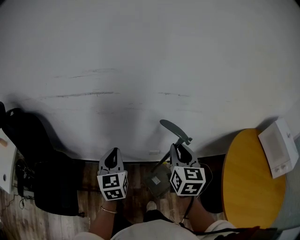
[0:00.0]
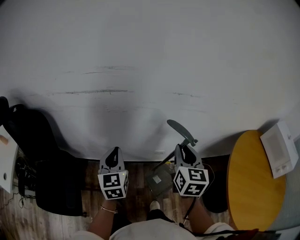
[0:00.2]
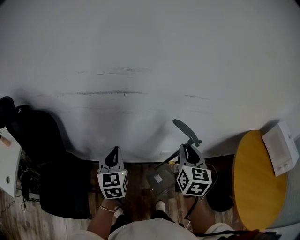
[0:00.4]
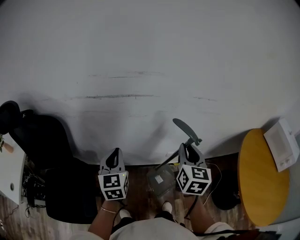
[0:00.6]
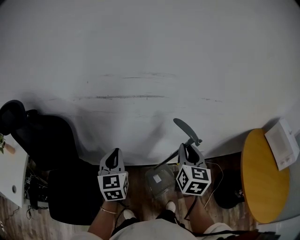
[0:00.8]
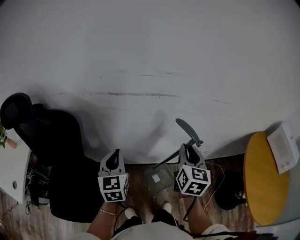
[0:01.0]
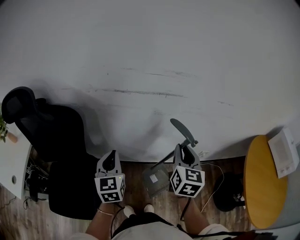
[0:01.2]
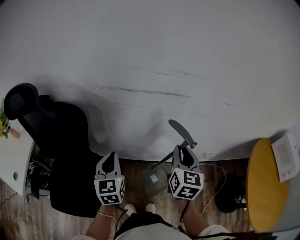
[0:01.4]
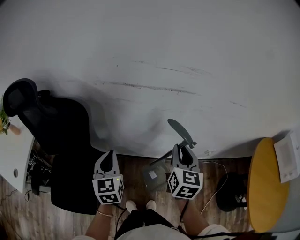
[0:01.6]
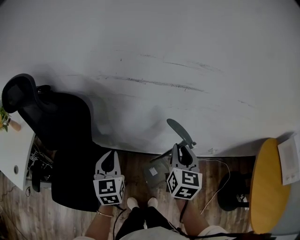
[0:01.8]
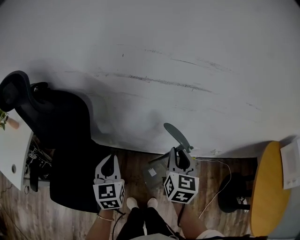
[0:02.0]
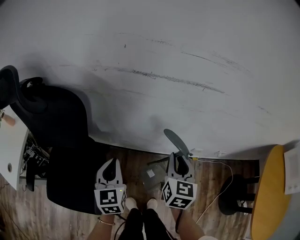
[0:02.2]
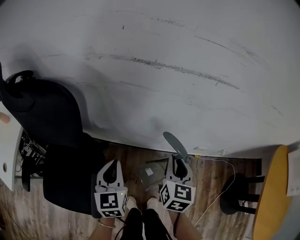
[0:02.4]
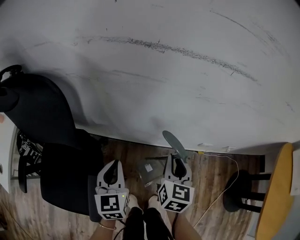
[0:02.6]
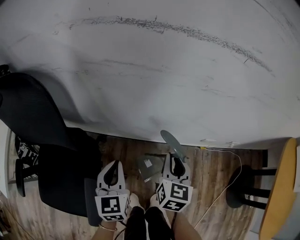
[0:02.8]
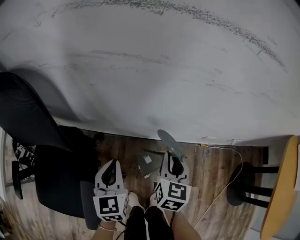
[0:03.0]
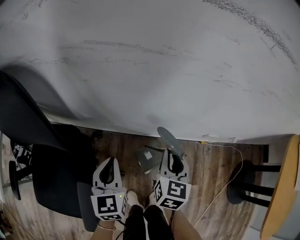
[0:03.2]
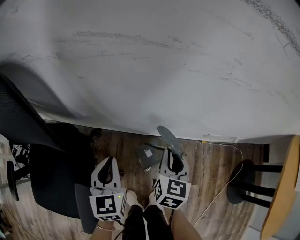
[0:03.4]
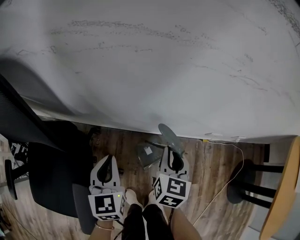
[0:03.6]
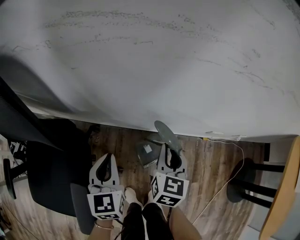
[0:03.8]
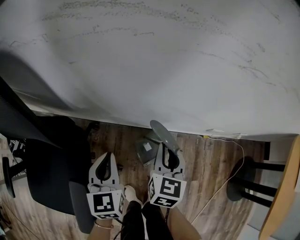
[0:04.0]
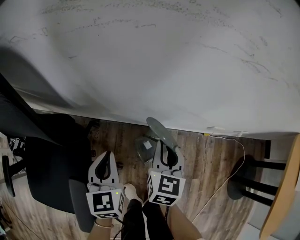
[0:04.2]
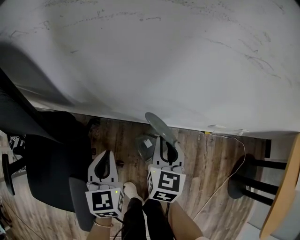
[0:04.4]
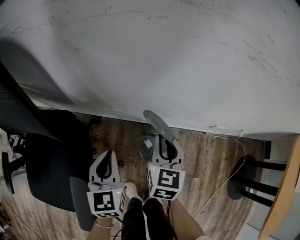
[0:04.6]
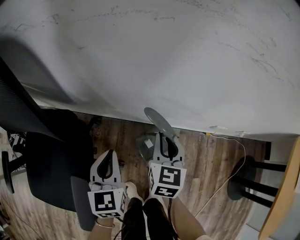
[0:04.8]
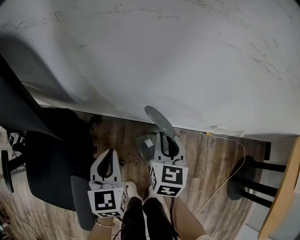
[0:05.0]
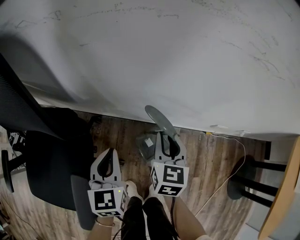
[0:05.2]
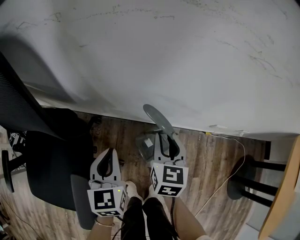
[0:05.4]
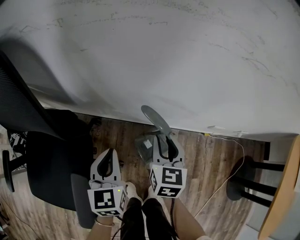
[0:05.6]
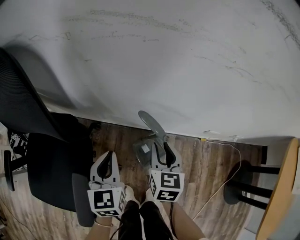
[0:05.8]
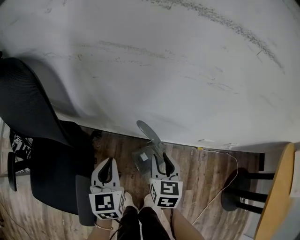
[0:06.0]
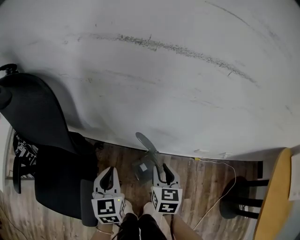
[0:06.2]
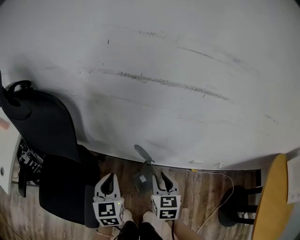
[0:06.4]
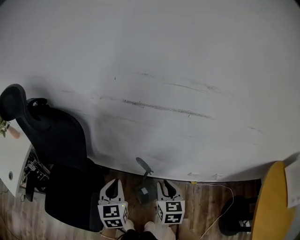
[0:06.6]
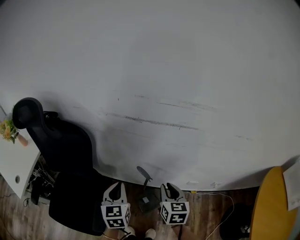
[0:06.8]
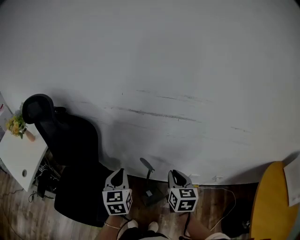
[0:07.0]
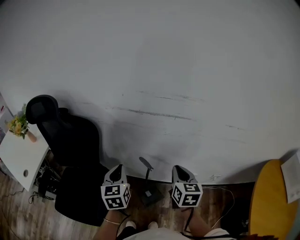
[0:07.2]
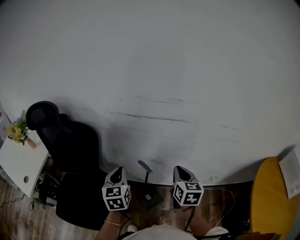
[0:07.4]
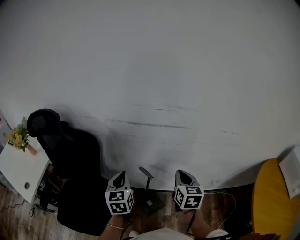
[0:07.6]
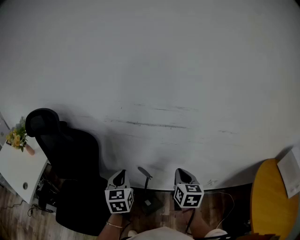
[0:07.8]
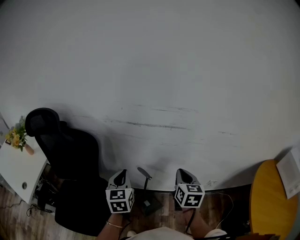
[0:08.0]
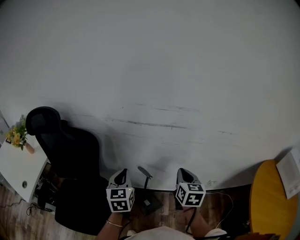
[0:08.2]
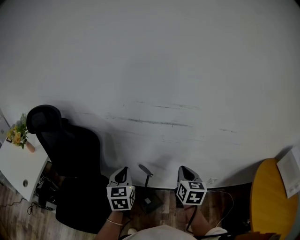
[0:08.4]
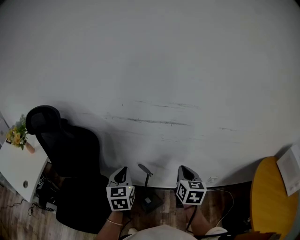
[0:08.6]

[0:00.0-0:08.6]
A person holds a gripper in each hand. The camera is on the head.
0:00.0 to 0:01.4: Both grippers move to the left, some 30 cm.
0:01.4 to 0:02.8: Both grippers travel together downward, some 25 cm.
0:02.8 to 0:04.4: Both grippers move downward, about 10 cm.
0:04.4 to 0:05.8: The grippers stay close to where they were, moving slightly.
0:05.8 to 0:07.2: Both grippers travel together upward, some 30 cm. The right gripper closes its fingers.
0:07.2 to 0:08.6: The grippers move only a little.

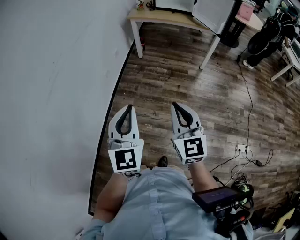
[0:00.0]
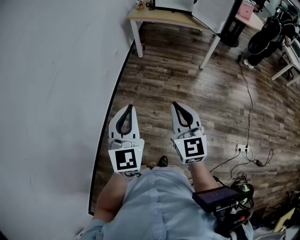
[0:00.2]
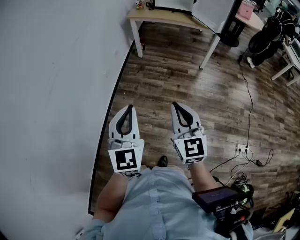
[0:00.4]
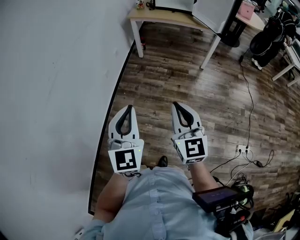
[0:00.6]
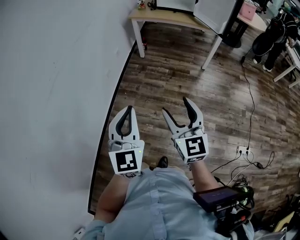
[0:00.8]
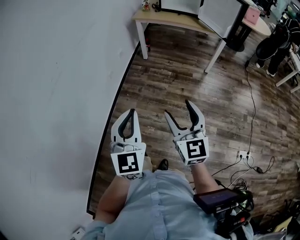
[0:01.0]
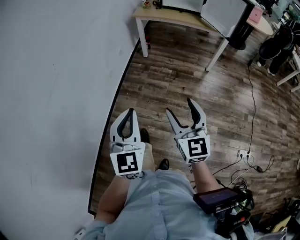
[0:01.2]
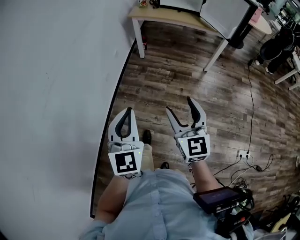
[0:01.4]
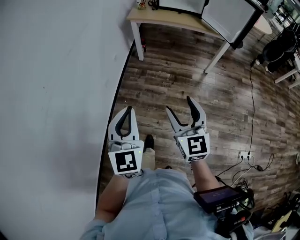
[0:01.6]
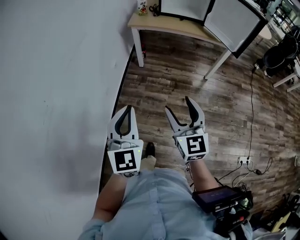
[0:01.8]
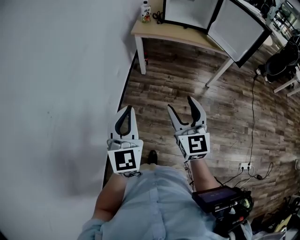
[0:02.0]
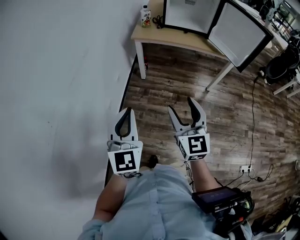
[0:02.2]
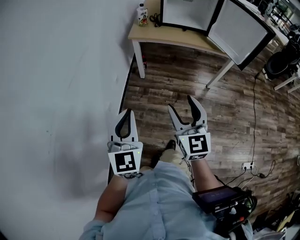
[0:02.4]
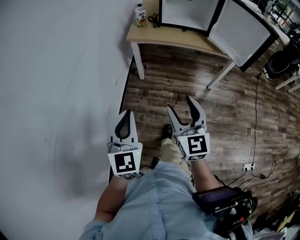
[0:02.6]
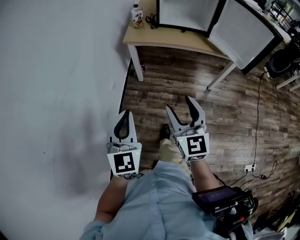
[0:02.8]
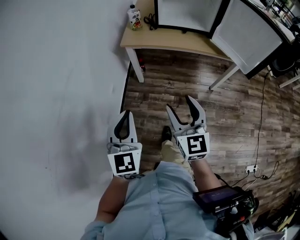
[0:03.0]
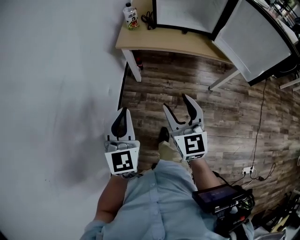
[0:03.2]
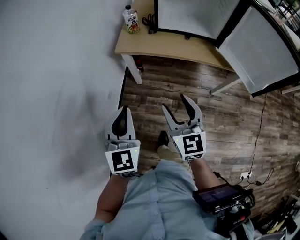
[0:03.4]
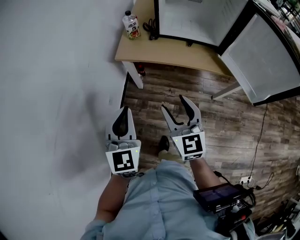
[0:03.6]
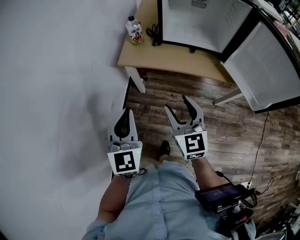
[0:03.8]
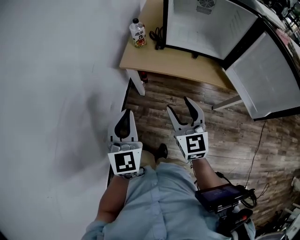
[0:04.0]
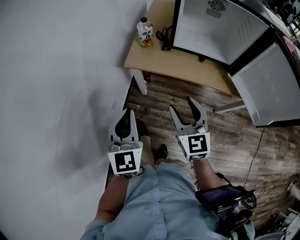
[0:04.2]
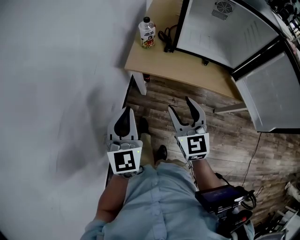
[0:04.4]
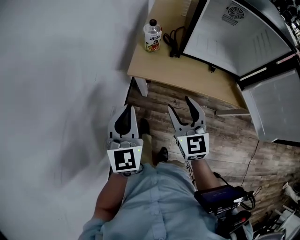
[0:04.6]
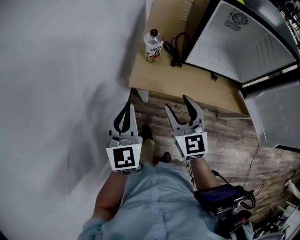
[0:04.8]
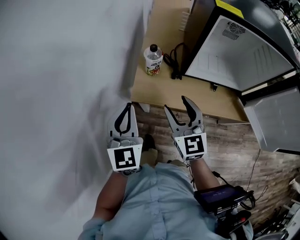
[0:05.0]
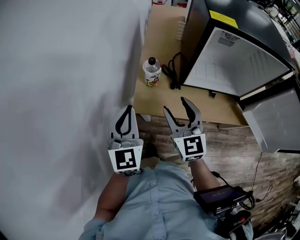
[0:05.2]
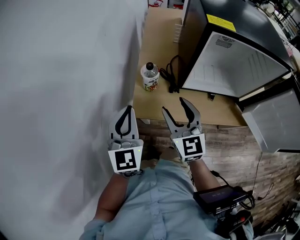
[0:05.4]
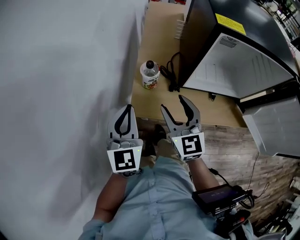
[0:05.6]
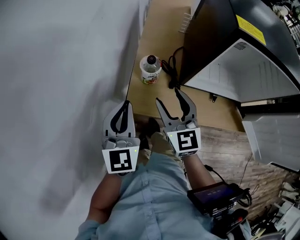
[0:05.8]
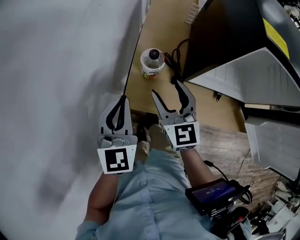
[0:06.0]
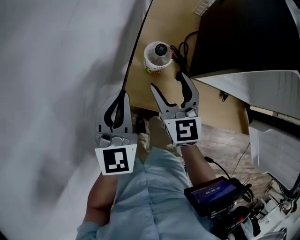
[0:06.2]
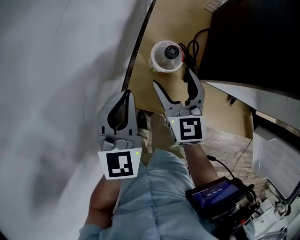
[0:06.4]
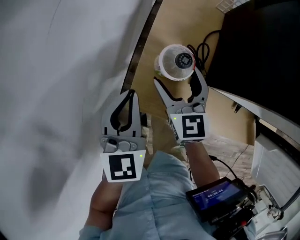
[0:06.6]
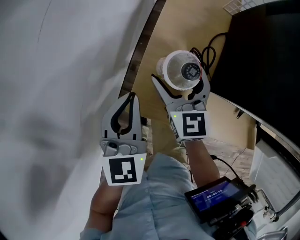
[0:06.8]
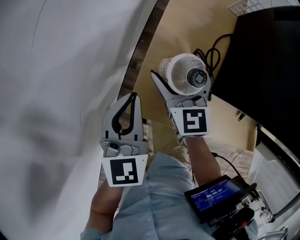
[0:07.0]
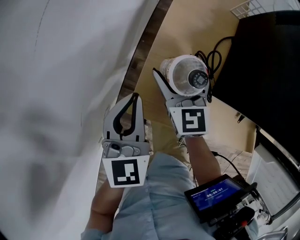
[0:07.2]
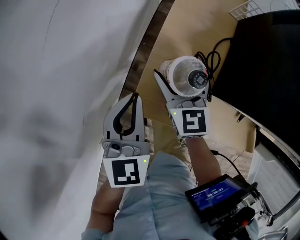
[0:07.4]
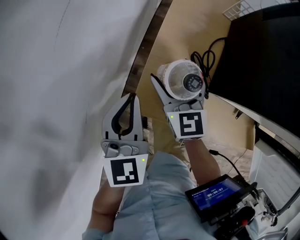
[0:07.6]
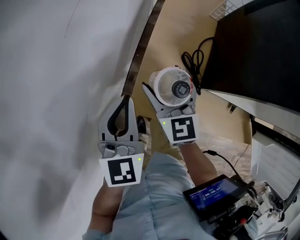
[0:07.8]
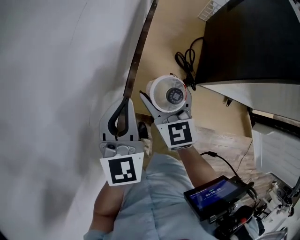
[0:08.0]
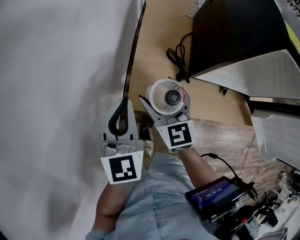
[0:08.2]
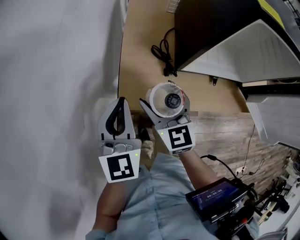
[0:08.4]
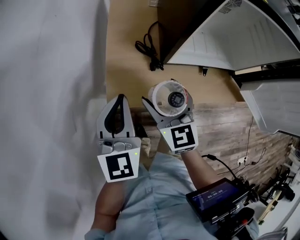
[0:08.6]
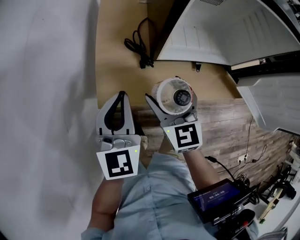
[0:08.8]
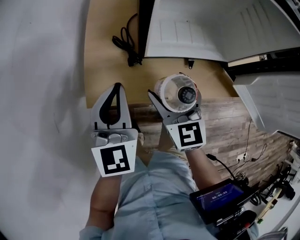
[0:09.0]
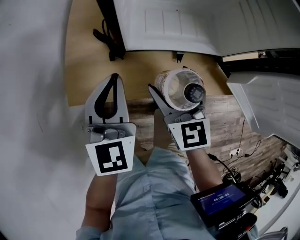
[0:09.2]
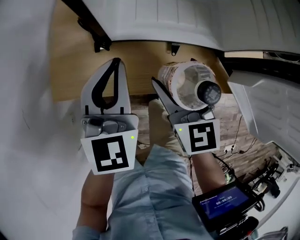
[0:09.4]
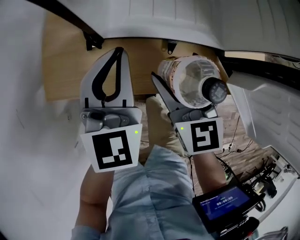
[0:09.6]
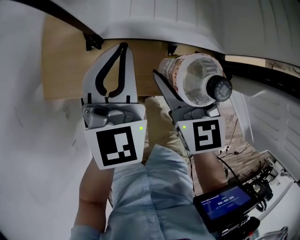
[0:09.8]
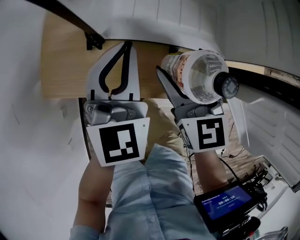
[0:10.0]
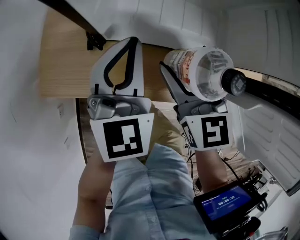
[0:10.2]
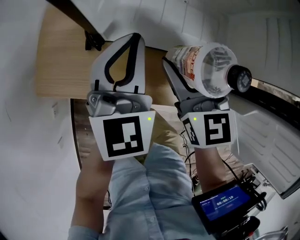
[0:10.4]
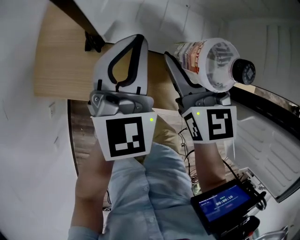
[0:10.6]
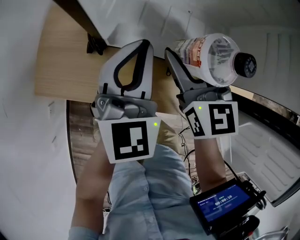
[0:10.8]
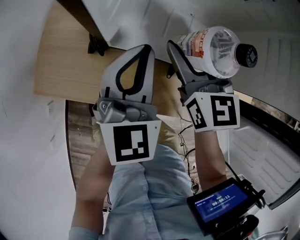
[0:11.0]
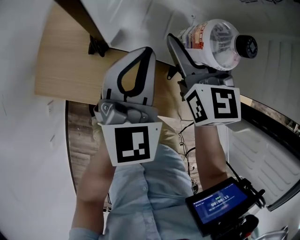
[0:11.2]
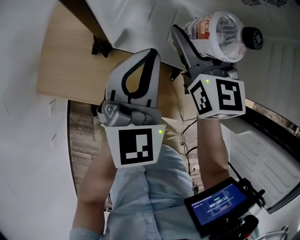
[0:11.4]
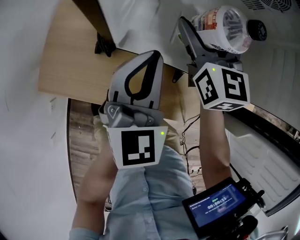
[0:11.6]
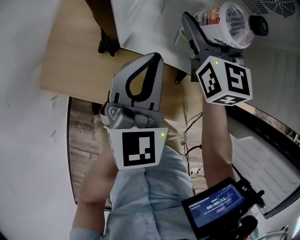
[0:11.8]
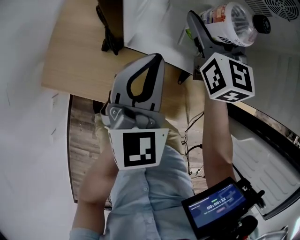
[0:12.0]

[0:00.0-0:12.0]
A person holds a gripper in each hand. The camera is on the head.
0:00.0 to 0:01.6: Both grippers move forward, approximately 20 cm. The right gripper opens up.
0:01.6 to 0:03.0: Both grippers move forward, roughly 35 cm.
0:03.0 to 0:04.4: Both grippers move forward, about 30 cm.
0:04.4 to 0:06.0: The grippers both shift forward by roughly 30 cm.
0:06.0 to 0:07.6: Both grippers travel together forward and downward, some 10 cm.
0:07.6 to 0:09.0: The two grippers go approximately 25 cm to the right and backward. The left gripper turns by approximately 20 degrees.
0:09.0 to 0:10.4: Both grippers travel together to the right and forward, roughly 15 cm.
0:10.4 to 0:12.0: The right gripper goes some 15 cm forward.

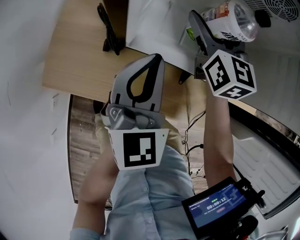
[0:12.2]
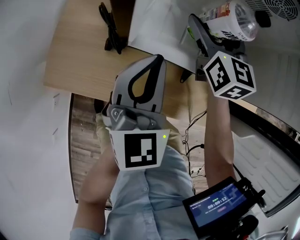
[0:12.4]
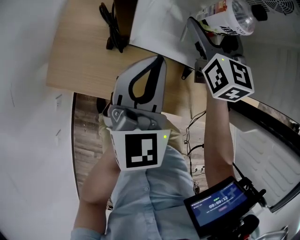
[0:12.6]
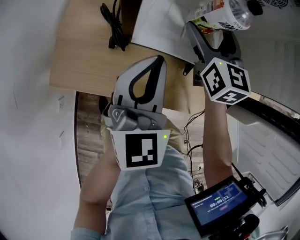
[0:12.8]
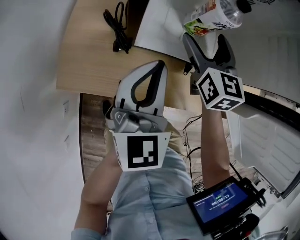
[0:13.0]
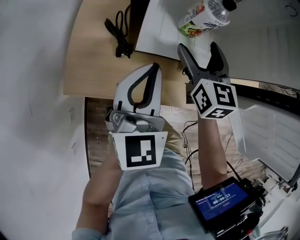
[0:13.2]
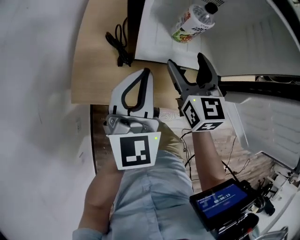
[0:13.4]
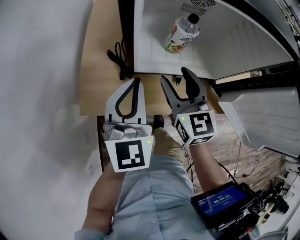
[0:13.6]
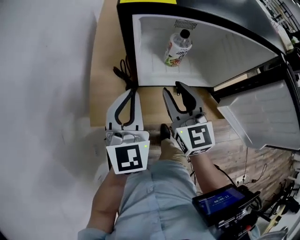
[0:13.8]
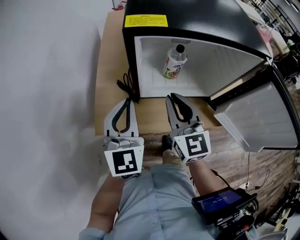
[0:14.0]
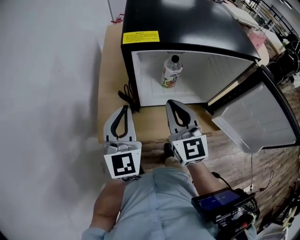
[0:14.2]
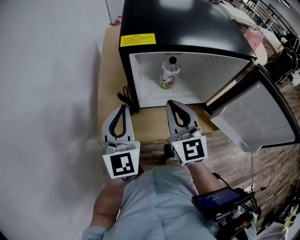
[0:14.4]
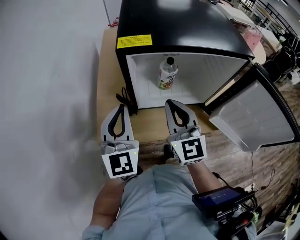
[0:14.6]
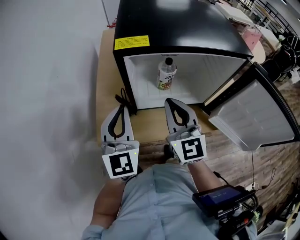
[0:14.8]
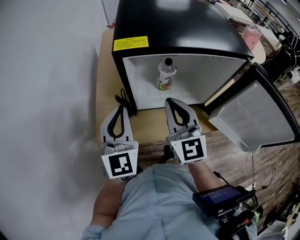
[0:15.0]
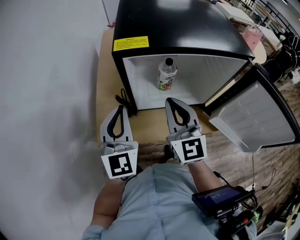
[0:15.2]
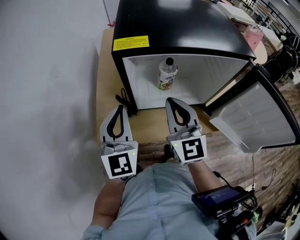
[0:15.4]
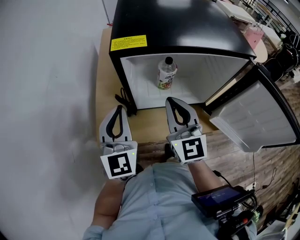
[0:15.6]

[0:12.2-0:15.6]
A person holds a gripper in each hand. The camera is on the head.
0:12.2 to 0:13.8: The left gripper travels upward, to the left and backward by approximately 20 cm. The right gripper heads backward and upward, covering some 25 cm, and closes its fingers.
0:13.8 to 0:15.6: The left gripper moves roughly 5 cm; the right gripper moves upward, approximately 5 cm.
